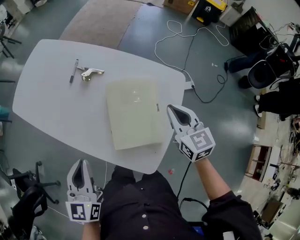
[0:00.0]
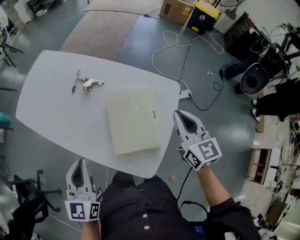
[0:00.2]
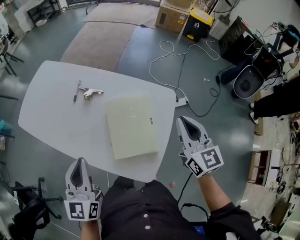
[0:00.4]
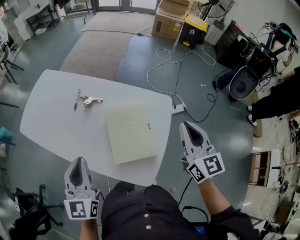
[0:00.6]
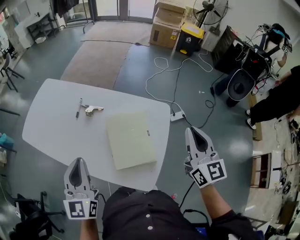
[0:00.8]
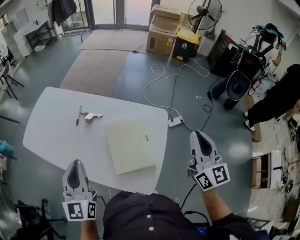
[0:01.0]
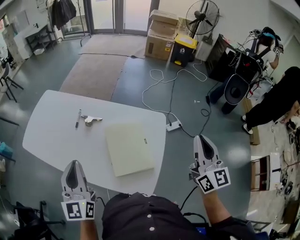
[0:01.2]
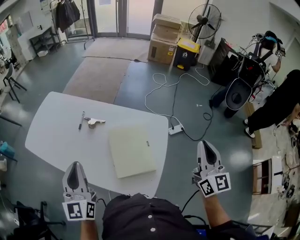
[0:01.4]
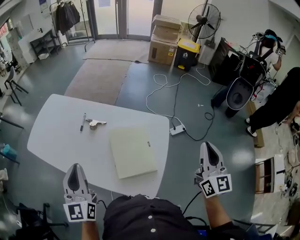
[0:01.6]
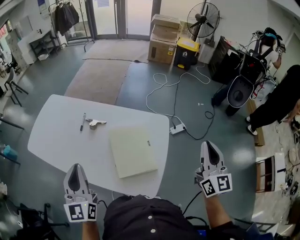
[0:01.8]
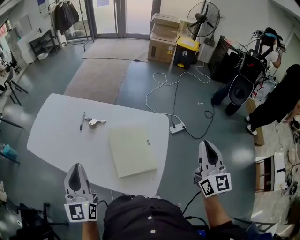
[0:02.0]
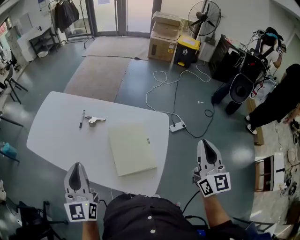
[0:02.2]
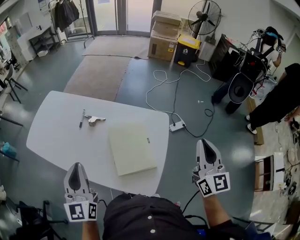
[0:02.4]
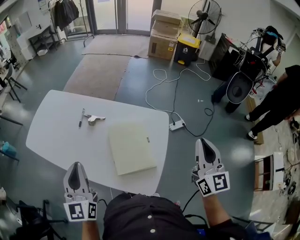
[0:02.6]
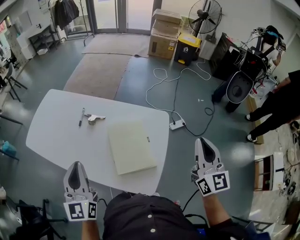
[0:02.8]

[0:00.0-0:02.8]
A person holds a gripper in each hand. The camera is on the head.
0:00.0 to 0:01.4: The right gripper travels upward, to the right and backward by approximately 25 cm, and rotates some 40 degrees. The left gripper is displaced upward by approximately 10 cm, and changes its angle by about 20 degrees.
0:01.4 to 0:02.8: There are only small adjustments of the grippers.

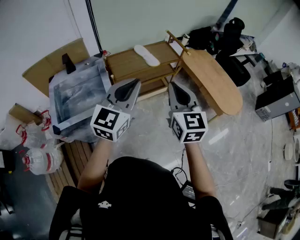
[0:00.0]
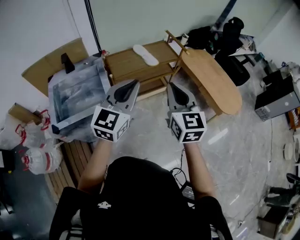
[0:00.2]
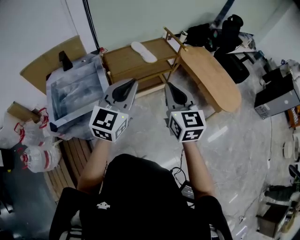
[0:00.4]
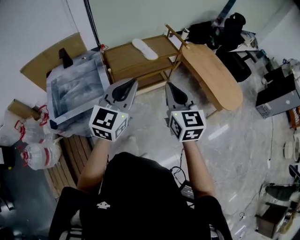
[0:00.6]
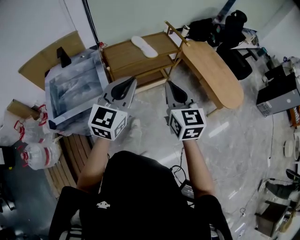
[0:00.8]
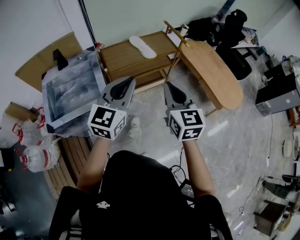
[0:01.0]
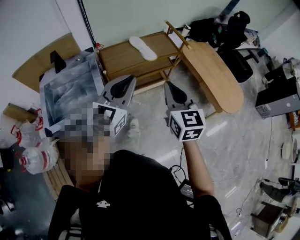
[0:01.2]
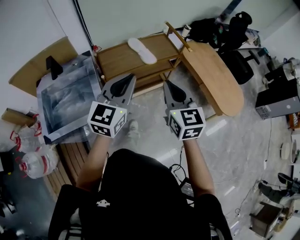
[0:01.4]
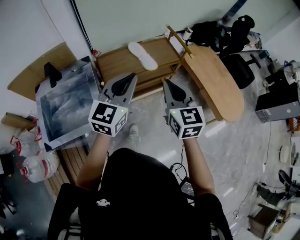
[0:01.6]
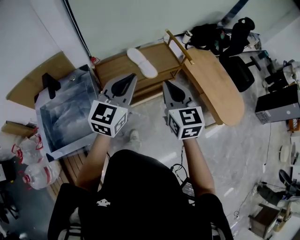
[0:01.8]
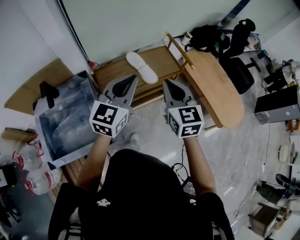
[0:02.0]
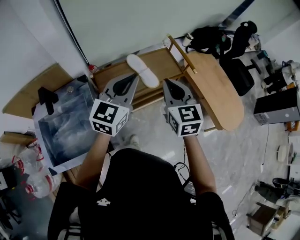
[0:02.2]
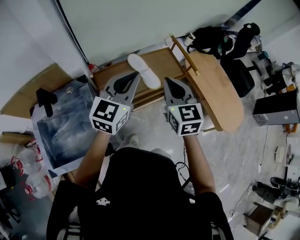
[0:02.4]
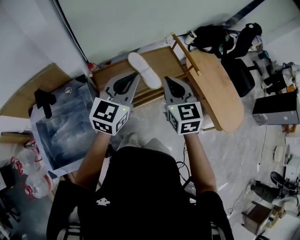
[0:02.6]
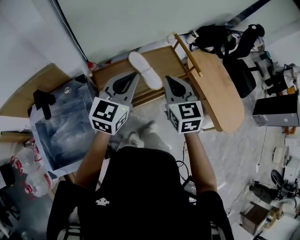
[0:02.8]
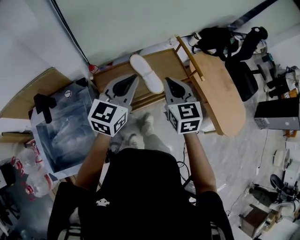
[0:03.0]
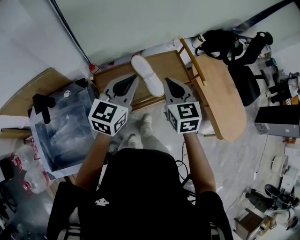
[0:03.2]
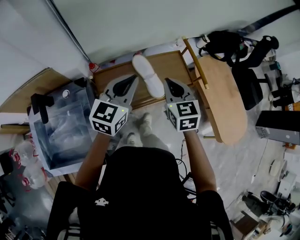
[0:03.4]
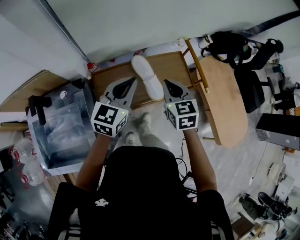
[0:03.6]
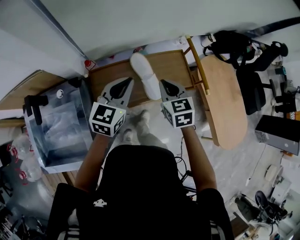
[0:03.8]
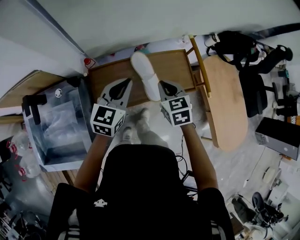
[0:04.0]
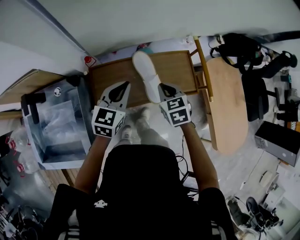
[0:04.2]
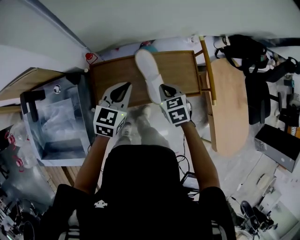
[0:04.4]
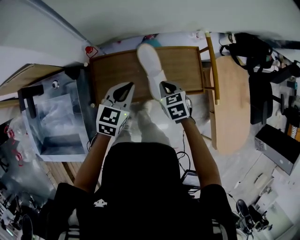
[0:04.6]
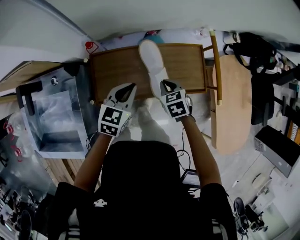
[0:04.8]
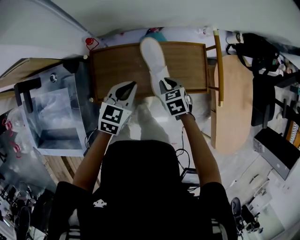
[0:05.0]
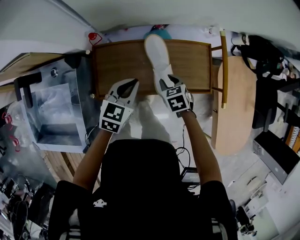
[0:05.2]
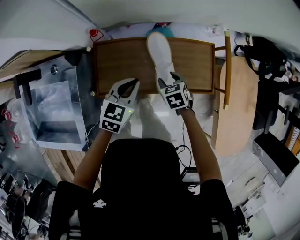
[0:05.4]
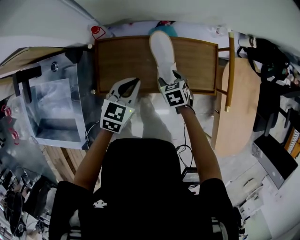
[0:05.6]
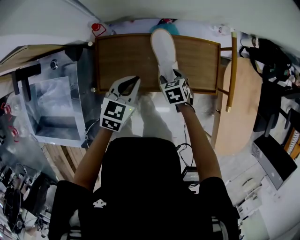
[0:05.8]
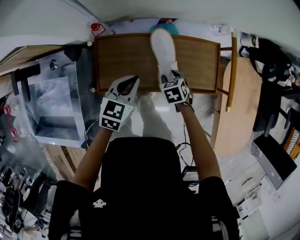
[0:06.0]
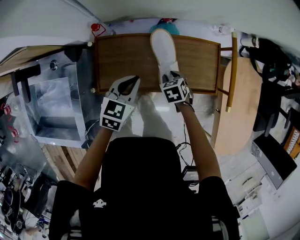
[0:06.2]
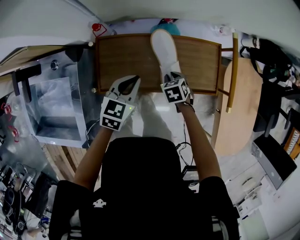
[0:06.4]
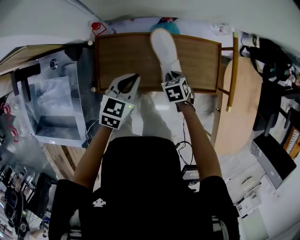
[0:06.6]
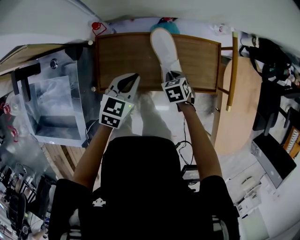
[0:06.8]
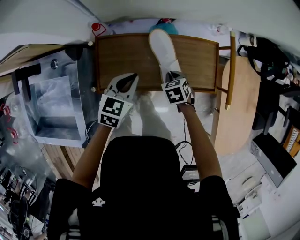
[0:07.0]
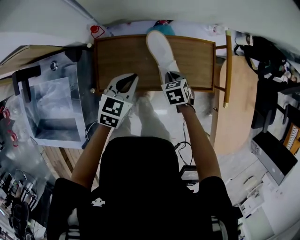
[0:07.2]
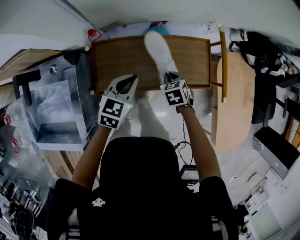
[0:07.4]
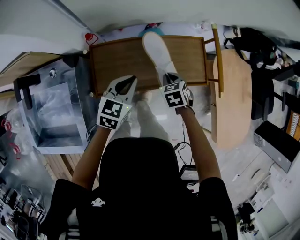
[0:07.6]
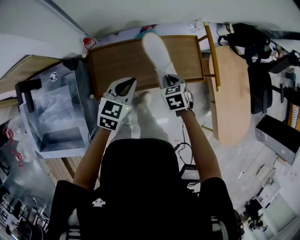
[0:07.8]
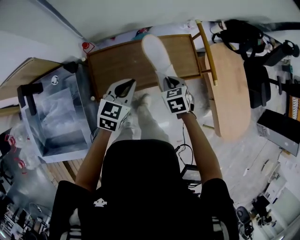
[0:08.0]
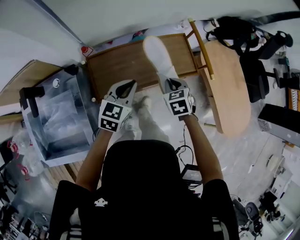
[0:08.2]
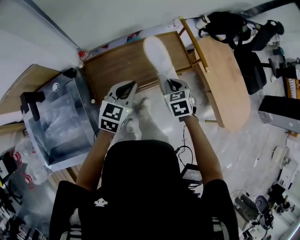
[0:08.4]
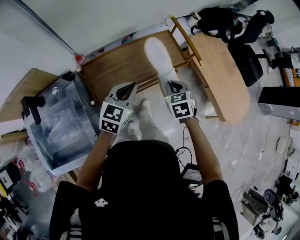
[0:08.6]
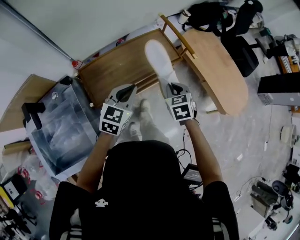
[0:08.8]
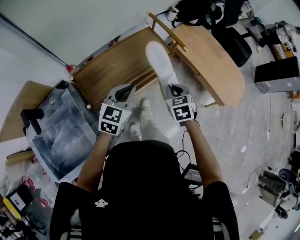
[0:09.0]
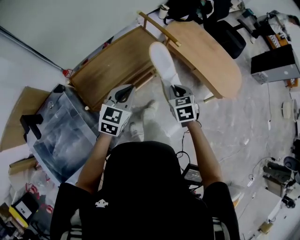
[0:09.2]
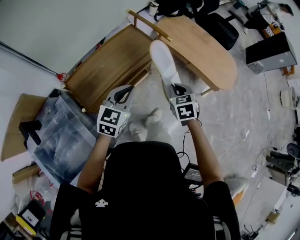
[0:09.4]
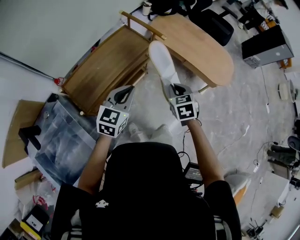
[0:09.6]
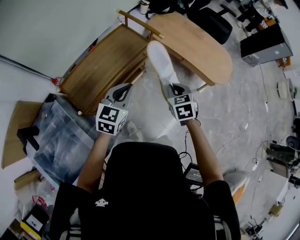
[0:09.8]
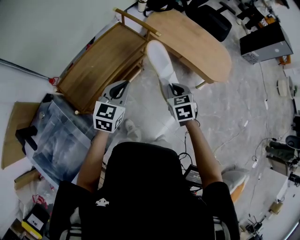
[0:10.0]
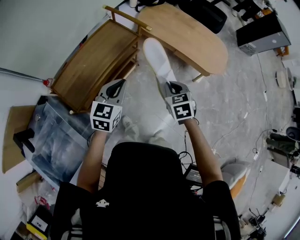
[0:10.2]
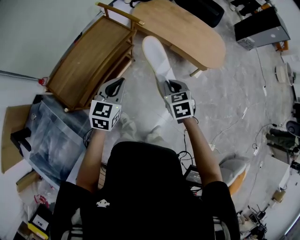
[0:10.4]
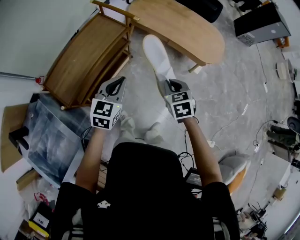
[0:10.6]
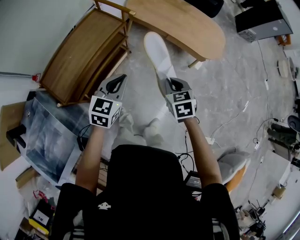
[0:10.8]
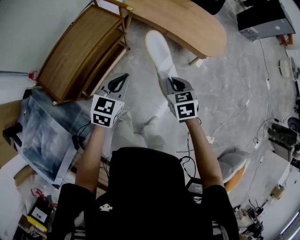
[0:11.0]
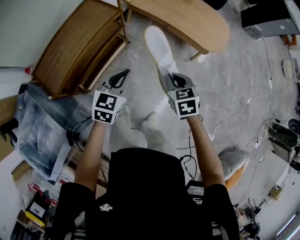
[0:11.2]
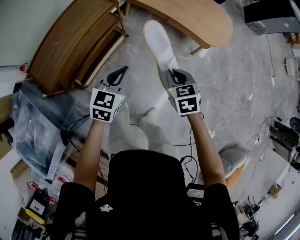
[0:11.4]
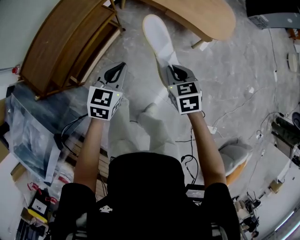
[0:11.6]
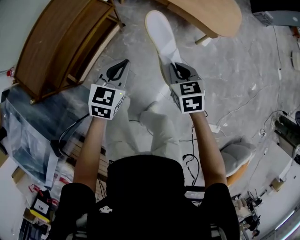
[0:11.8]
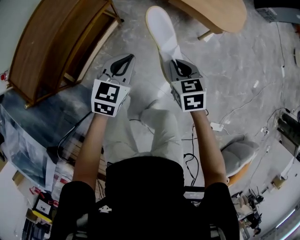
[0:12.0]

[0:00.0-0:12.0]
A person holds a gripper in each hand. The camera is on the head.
0:00.0 to 0:01.6: The two grippers go approximately 20 cm forward.
0:01.6 to 0:03.0: Both grippers move forward, approximately 25 cm.
0:03.0 to 0:04.4: Both grippers move downward and forward, some 25 cm. The left gripper changes its angle by some 30 degrees. Meanwhile the right gripper swivels some 40 degrees.
0:04.4 to 0:06.0: The right gripper shifts some 15 cm downward, and opens, while the left gripper goes some 10 cm downward.
0:06.0 to 0:07.6: The right gripper heads upward, covering approximately 10 cm, and closes.
0:07.6 to 0:09.0: The right gripper moves roughly 30 cm, and rotates approximately 30 degrees, while the left gripper ends up roughly 20 cm from where it was, and swivels about 30 degrees.
0:09.0 to 0:10.4: Both grippers move to the right, approximately 15 cm.
0:10.4 to 0:12.0: Both grippers travel together downward and to the right, roughly 30 cm.

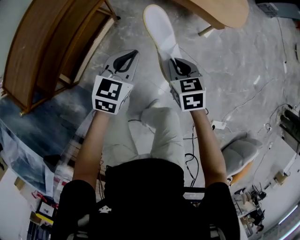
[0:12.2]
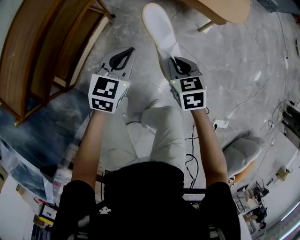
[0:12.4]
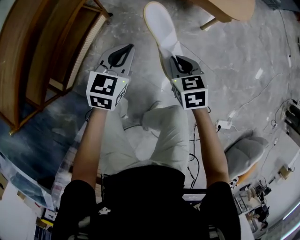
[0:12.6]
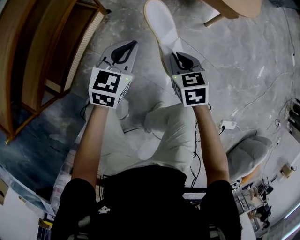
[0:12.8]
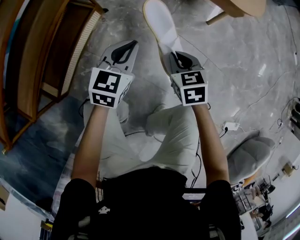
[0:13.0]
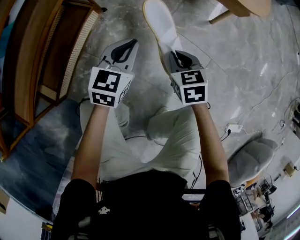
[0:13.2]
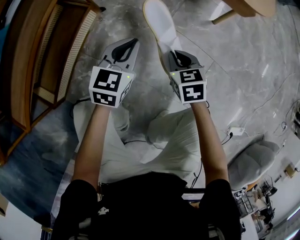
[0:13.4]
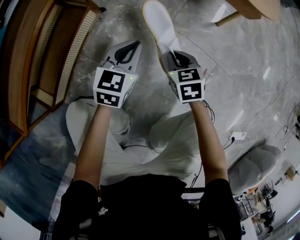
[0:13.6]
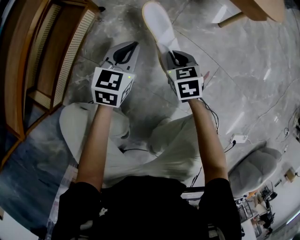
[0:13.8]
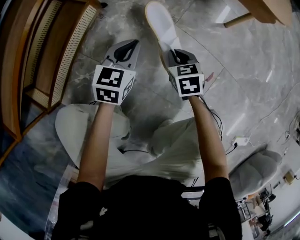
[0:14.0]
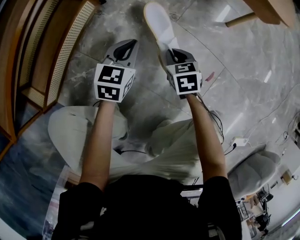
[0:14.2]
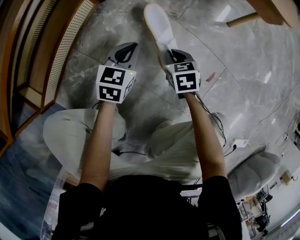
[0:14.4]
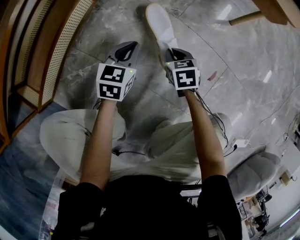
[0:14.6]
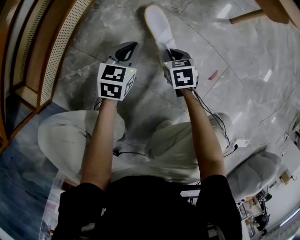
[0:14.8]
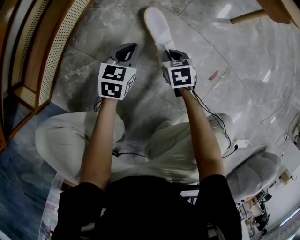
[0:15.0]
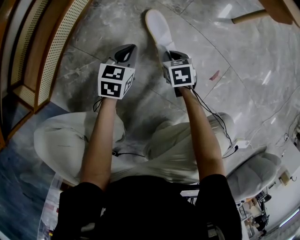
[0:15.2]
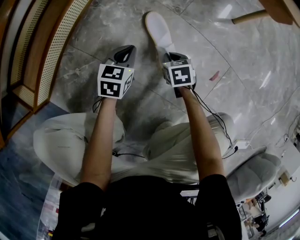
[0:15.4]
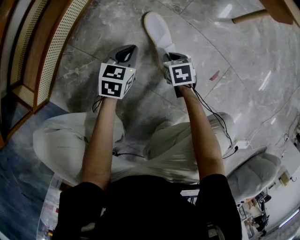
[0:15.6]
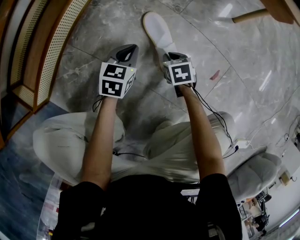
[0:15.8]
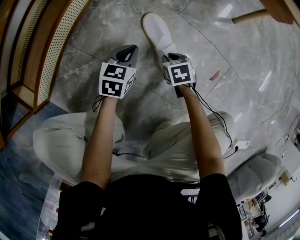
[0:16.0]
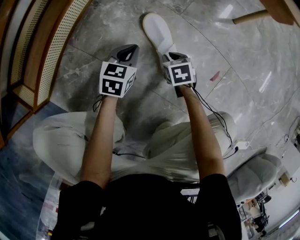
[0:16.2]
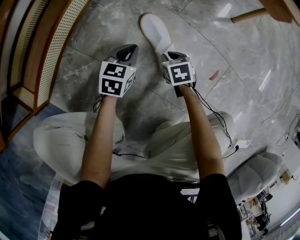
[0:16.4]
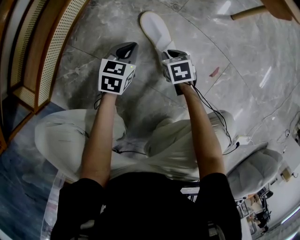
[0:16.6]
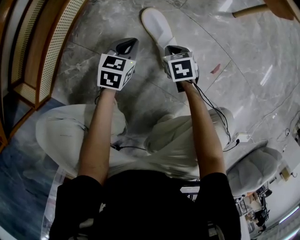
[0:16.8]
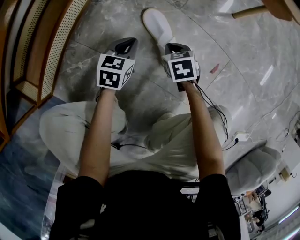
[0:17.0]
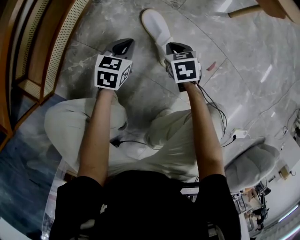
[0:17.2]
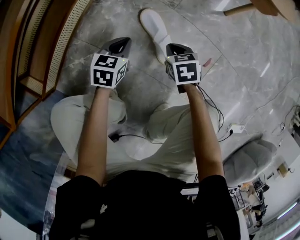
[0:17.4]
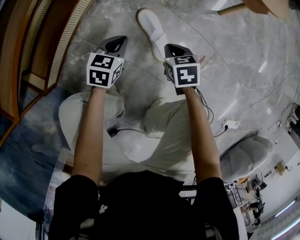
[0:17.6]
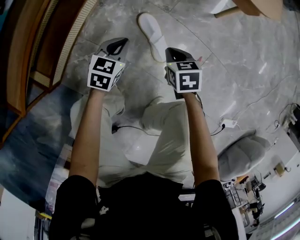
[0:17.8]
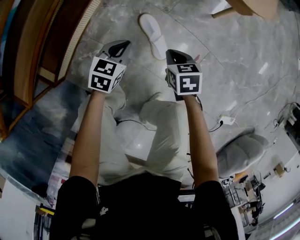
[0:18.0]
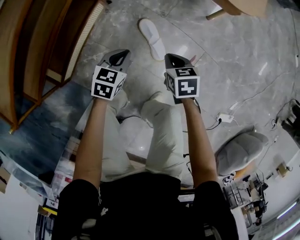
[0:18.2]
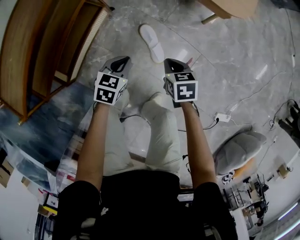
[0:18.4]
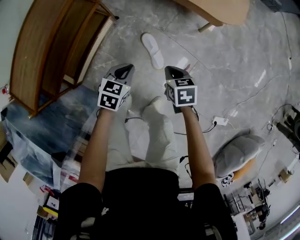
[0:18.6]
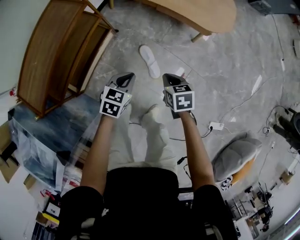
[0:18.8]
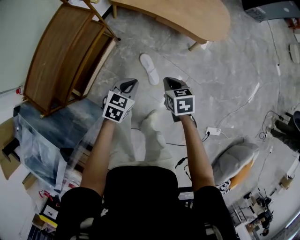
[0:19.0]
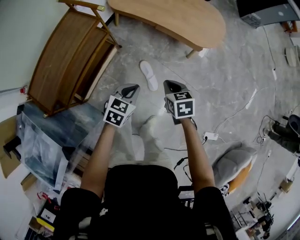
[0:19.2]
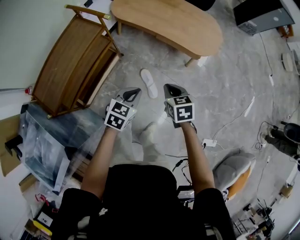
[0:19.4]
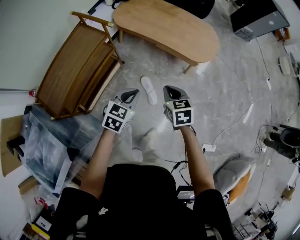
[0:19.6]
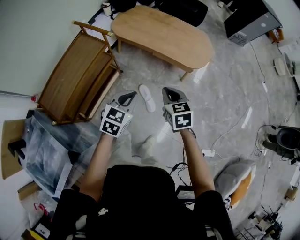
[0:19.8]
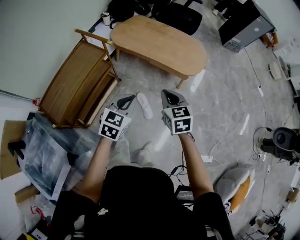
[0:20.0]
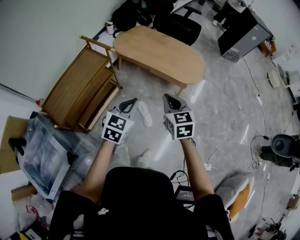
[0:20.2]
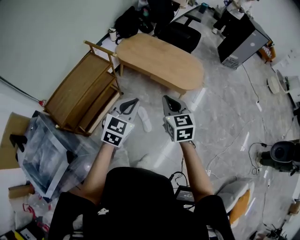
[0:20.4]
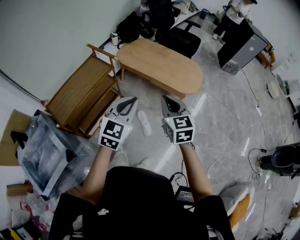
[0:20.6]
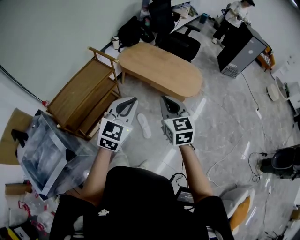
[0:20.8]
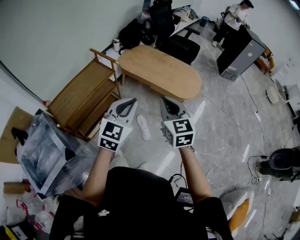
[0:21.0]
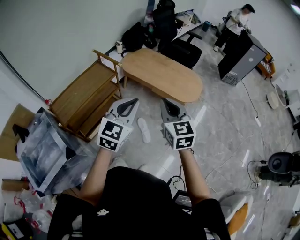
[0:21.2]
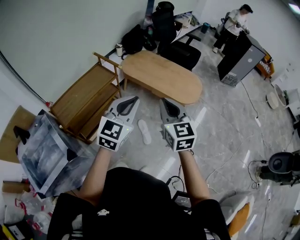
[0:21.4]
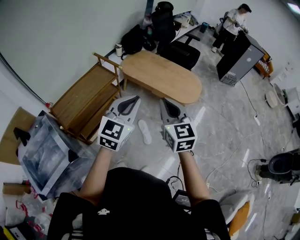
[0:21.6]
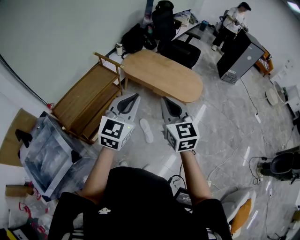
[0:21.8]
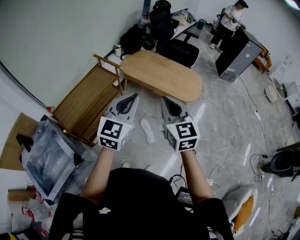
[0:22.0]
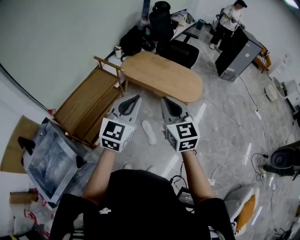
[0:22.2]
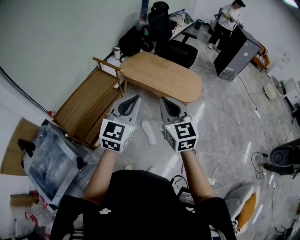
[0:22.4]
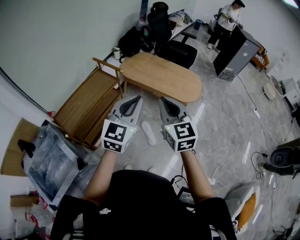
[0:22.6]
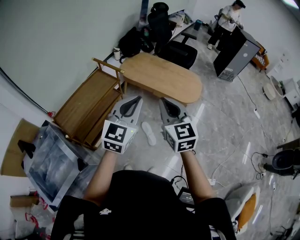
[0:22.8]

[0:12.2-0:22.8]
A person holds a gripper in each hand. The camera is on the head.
0:12.2 to 0:13.8: Both grippers move downward, about 35 cm.
0:13.8 to 0:15.2: The two grippers go approximately 20 cm downward.
0:15.2 to 0:16.8: The grippers stay close to where they were, moving slightly.
0:16.8 to 0:18.2: Both grippers travel together upward, roughly 35 cm.
0:18.2 to 0:19.8: The grippers both shift upward by about 50 cm. The right gripper changes its angle by roughly 30 degrees.
0:19.8 to 0:21.2: The grippers both shift upward and backward by some 25 cm. The left gripper rotates roughly 30 degrees. The right gripper swivels roughly 30 degrees.
0:21.2 to 0:22.8: The left gripper goes roughly 5 cm upward and to the left. The right gripper moves to the left, approximately 5 cm.
